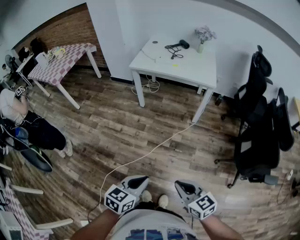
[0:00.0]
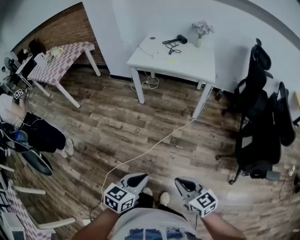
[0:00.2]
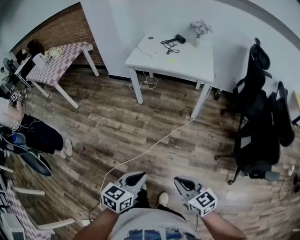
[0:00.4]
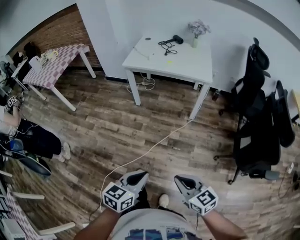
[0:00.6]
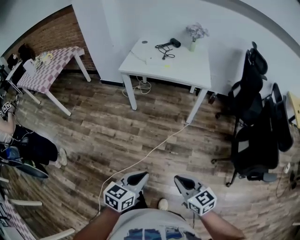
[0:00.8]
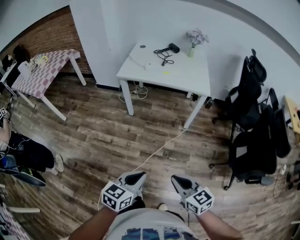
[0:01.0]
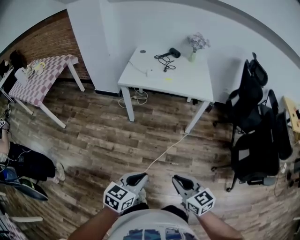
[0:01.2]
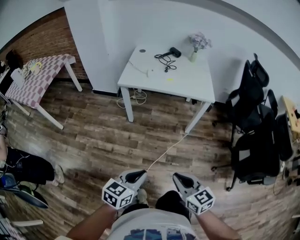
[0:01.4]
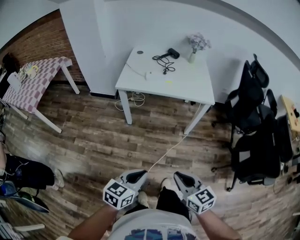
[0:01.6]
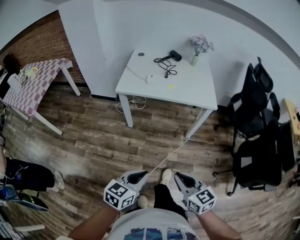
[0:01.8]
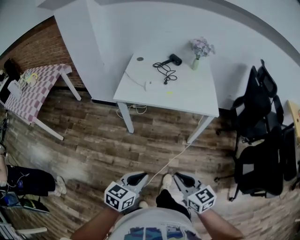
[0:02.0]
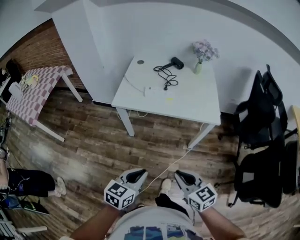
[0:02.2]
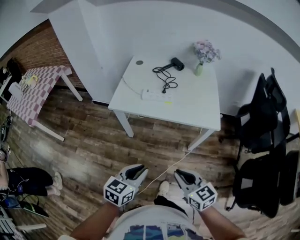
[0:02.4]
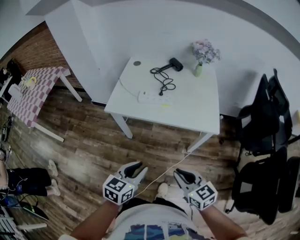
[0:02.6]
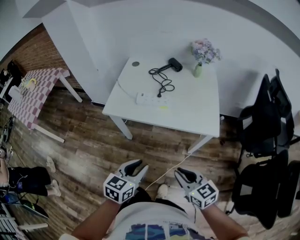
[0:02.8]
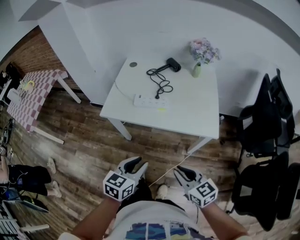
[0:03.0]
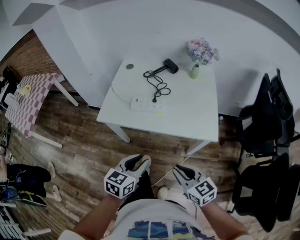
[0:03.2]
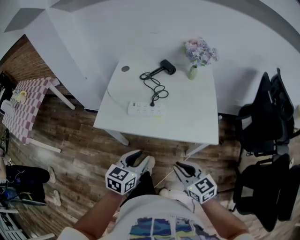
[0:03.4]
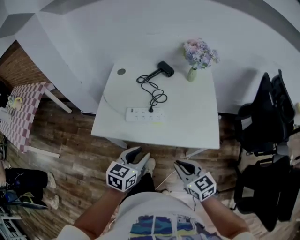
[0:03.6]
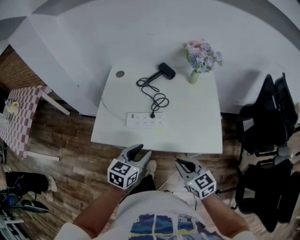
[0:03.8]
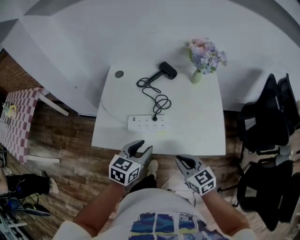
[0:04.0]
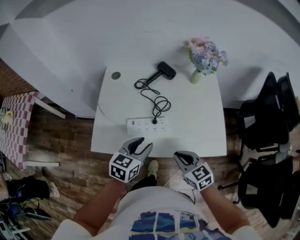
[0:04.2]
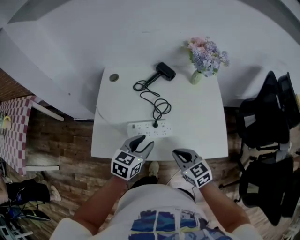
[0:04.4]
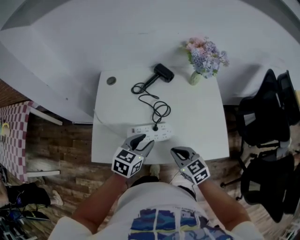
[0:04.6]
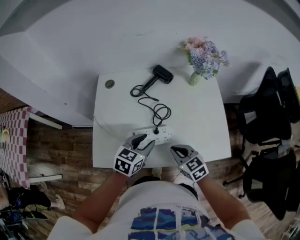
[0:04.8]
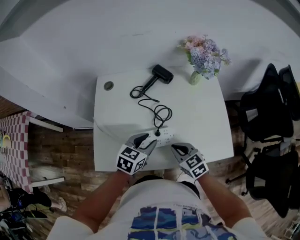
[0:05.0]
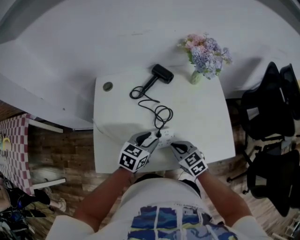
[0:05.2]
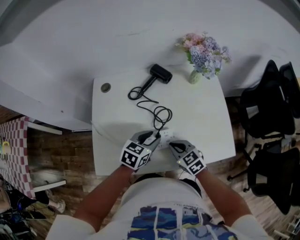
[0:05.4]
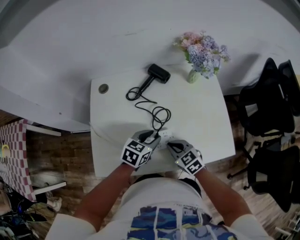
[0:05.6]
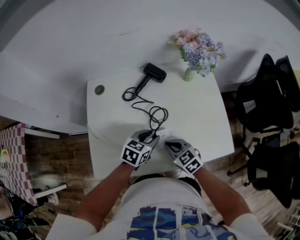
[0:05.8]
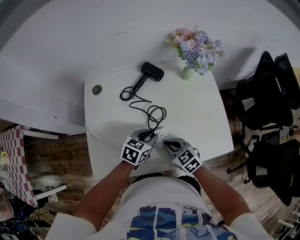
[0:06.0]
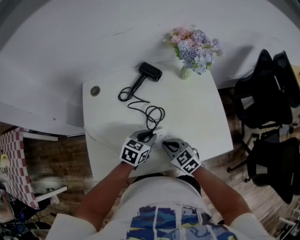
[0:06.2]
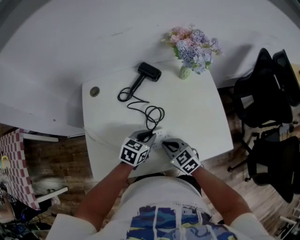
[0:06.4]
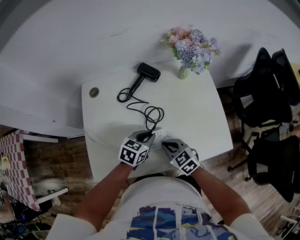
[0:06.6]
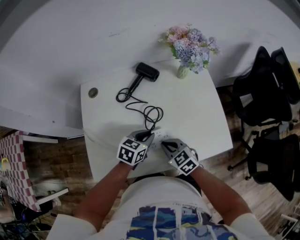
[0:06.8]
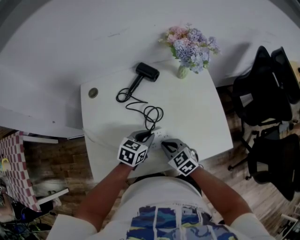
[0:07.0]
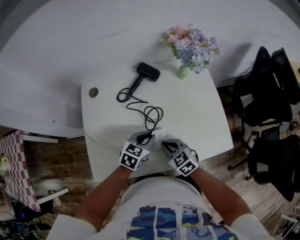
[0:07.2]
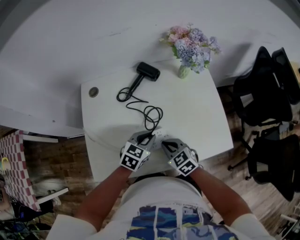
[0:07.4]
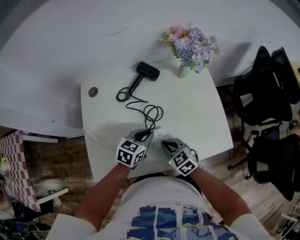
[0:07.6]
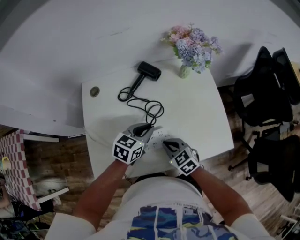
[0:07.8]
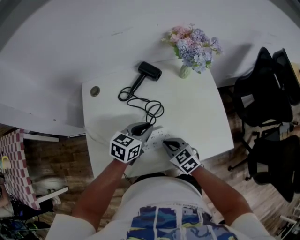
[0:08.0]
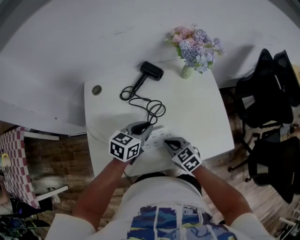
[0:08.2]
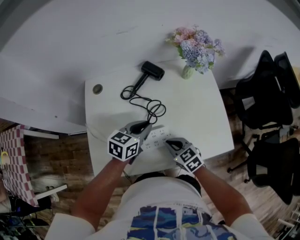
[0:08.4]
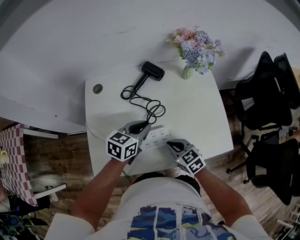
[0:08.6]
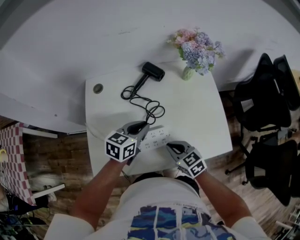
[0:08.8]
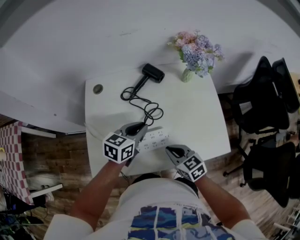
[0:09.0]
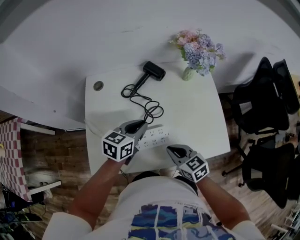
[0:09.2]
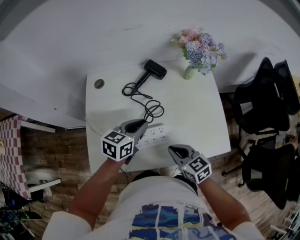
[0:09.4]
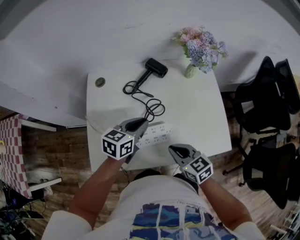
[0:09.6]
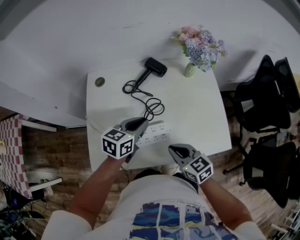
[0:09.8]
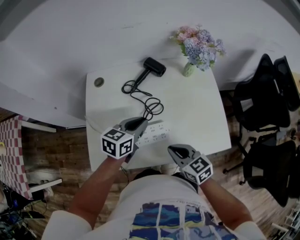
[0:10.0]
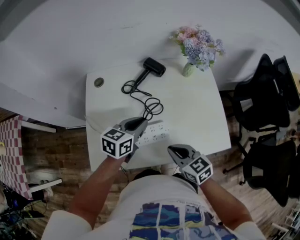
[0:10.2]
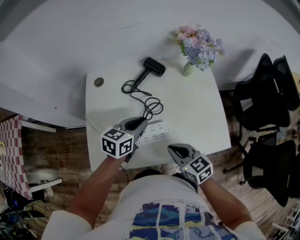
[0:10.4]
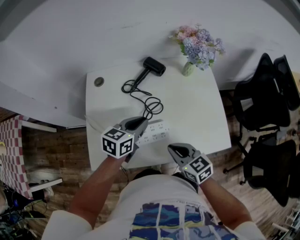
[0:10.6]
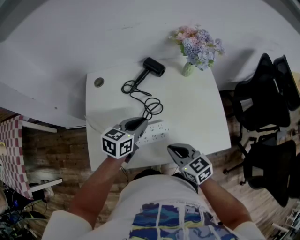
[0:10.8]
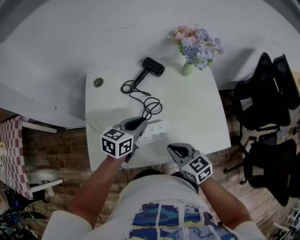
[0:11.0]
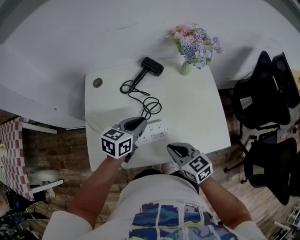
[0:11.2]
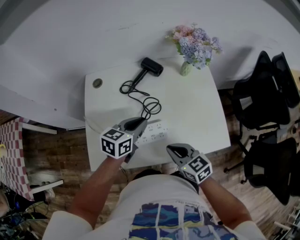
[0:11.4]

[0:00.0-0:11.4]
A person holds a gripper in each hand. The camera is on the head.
0:00.0 to 0:01.4: Both grippers move forward and to the left, some 25 cm.
0:01.4 to 0:02.8: The two grippers go about 35 cm forward. The left gripper opens up.
0:02.8 to 0:04.2: Both grippers travel together forward, approximately 30 cm.
0:04.2 to 0:05.6: The left gripper goes approximately 15 cm forward and downward, while the right gripper shifts some 15 cm forward, downward and to the left.
0:05.6 to 0:07.2: The left gripper closes its fingers.
0:07.2 to 0:08.6: The left gripper moves upward, some 5 cm.
0:08.6 to 0:10.0: The right gripper travels upward by roughly 5 cm.
0:10.0 to 0:11.4: Both grippers stay about where they are.

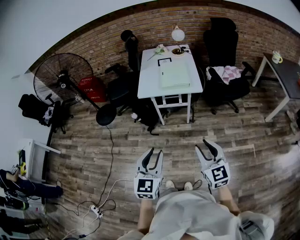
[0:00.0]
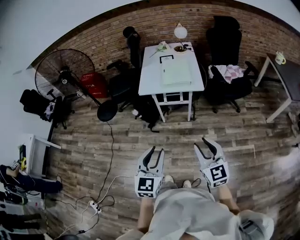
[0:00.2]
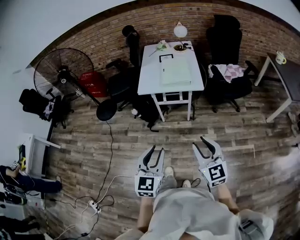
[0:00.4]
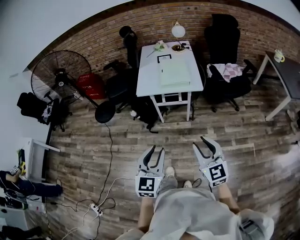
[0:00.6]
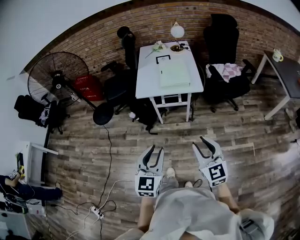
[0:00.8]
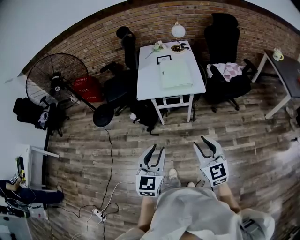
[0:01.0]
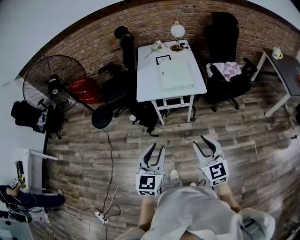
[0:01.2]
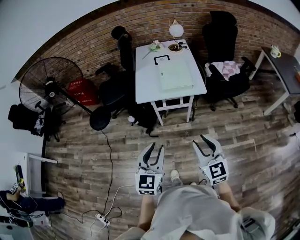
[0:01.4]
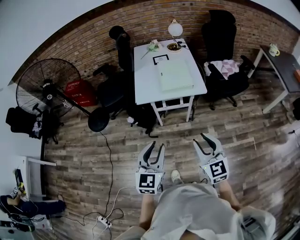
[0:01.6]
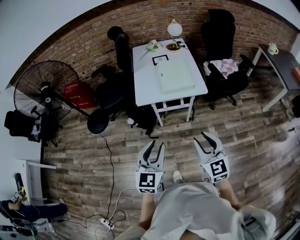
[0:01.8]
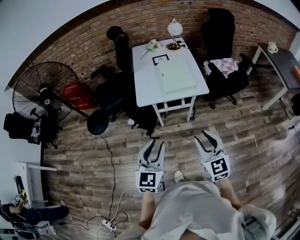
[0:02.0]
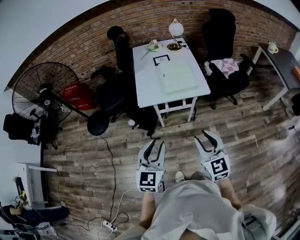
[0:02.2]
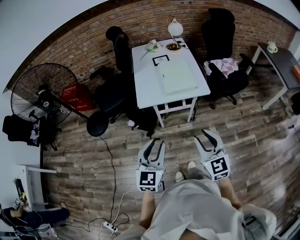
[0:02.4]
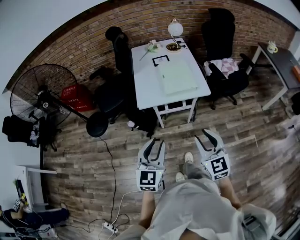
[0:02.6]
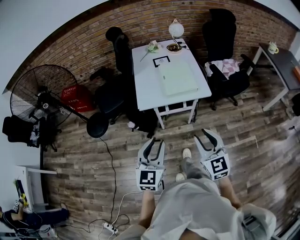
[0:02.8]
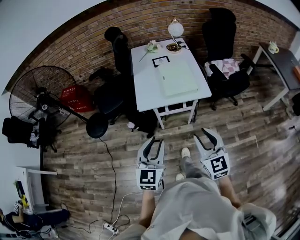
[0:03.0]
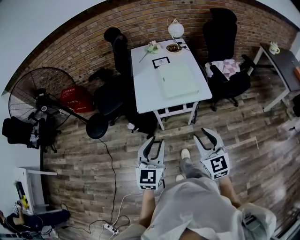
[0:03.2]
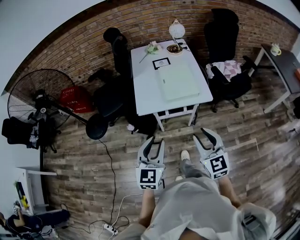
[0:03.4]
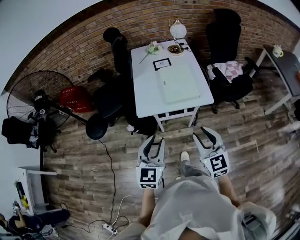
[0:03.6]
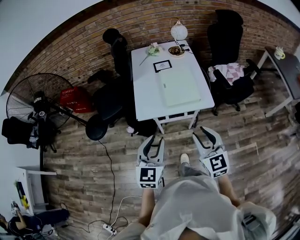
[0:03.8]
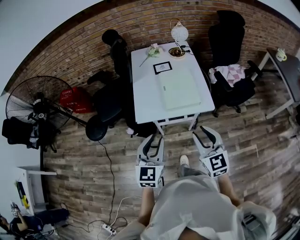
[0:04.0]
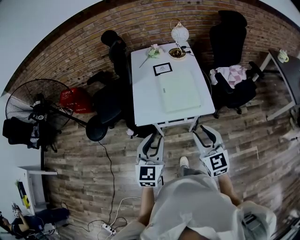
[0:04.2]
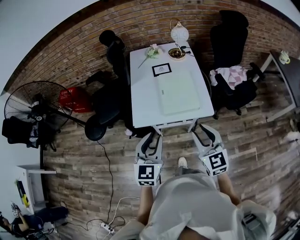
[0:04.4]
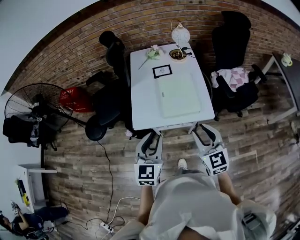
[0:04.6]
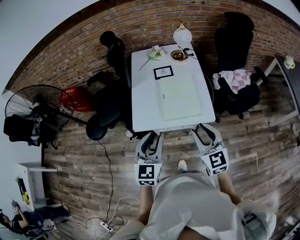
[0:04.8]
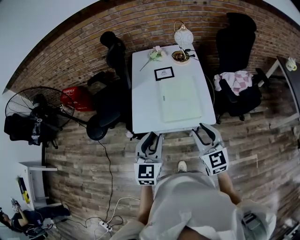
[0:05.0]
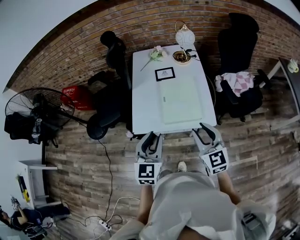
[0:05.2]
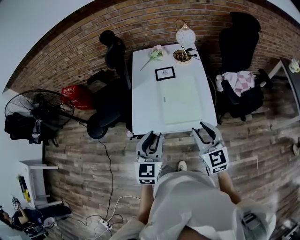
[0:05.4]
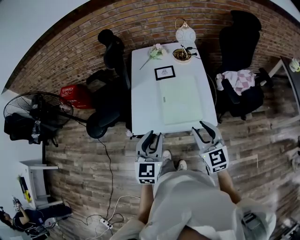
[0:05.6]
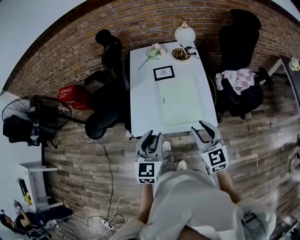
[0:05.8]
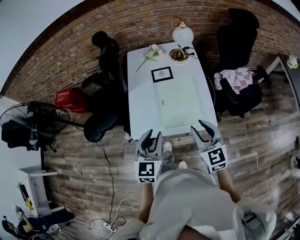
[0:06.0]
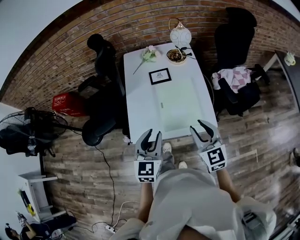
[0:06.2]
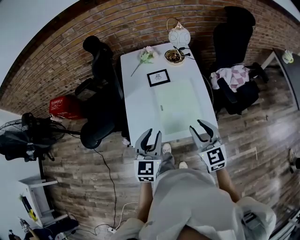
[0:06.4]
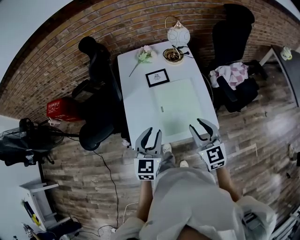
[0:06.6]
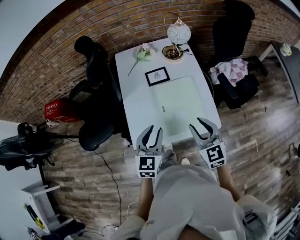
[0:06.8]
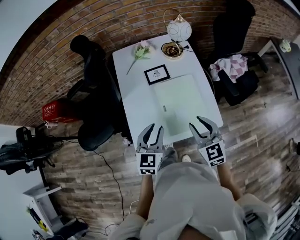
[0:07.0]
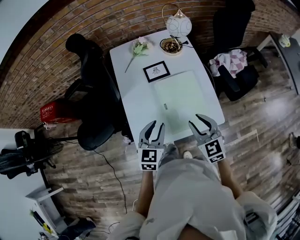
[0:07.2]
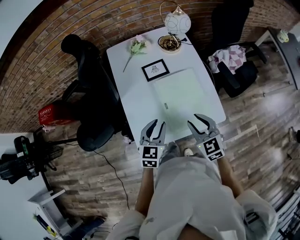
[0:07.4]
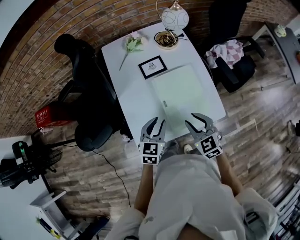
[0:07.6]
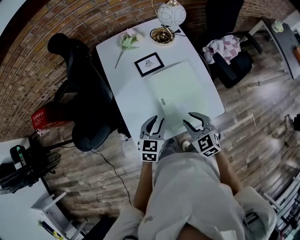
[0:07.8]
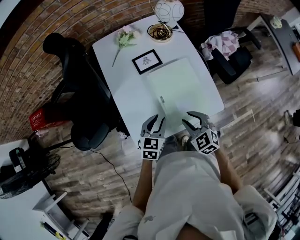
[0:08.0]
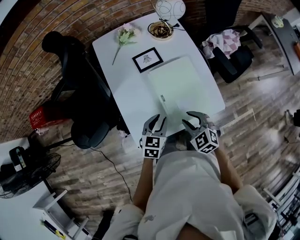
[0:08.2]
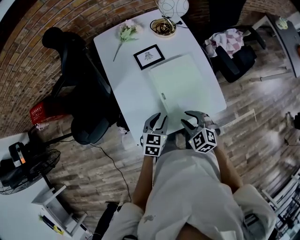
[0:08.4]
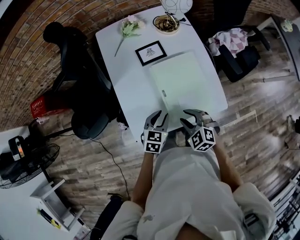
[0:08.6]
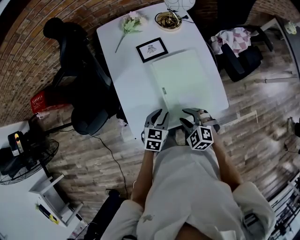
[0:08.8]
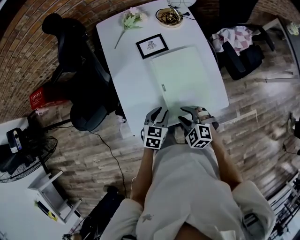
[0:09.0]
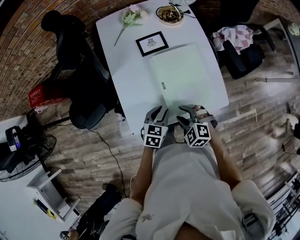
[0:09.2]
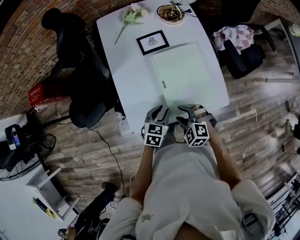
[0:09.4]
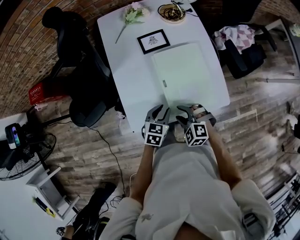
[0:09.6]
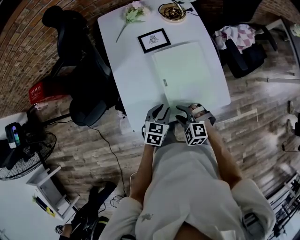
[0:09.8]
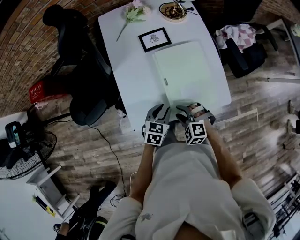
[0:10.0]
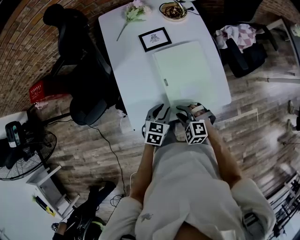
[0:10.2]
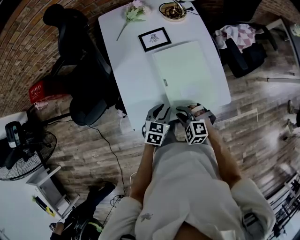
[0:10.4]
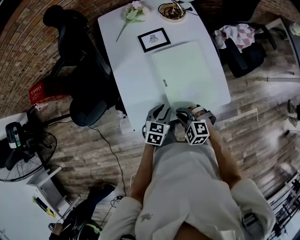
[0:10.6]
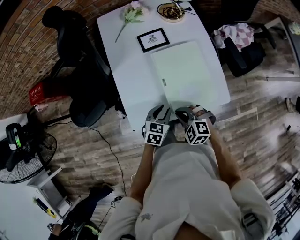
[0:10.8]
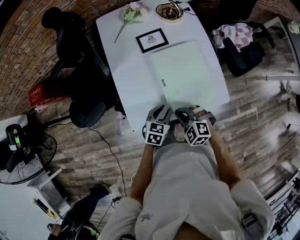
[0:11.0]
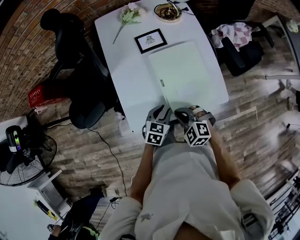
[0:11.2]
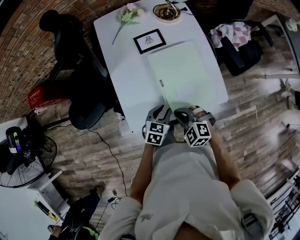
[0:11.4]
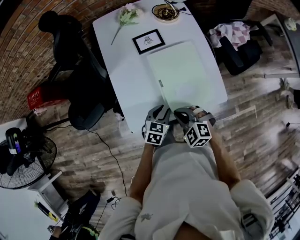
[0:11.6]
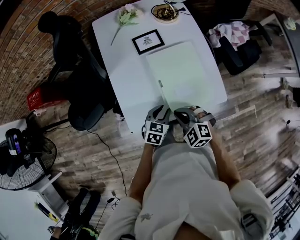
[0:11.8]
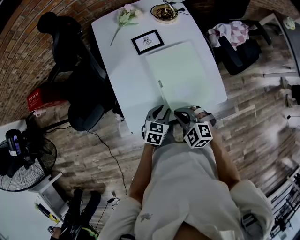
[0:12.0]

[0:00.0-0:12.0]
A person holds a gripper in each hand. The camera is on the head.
0:00.0 to 0:01.6: The left gripper goes some 15 cm forward. The right gripper goes roughly 15 cm forward and to the left.
0:01.6 to 0:03.0: Both grippers move forward, roughly 10 cm.
0:03.0 to 0:04.4: The grippers both shift forward by approximately 20 cm.
0:04.4 to 0:06.0: The grippers both shift forward by roughly 15 cm.
0:06.0 to 0:07.6: The left gripper moves downward and forward, roughly 20 cm, and turns by about 30 degrees, while the right gripper moves downward, forward and to the left, some 20 cm, and rotates approximately 20 degrees.
0:07.6 to 0:09.0: The grippers both shift downward by some 10 cm. The right gripper swivels approximately 40 degrees.
0:09.0 to 0:10.4: The grippers move only a little.
0:10.4 to 0:12.0: The right gripper is displaced upward by about 5 cm, and closes up.

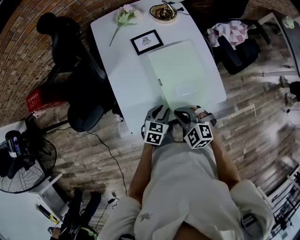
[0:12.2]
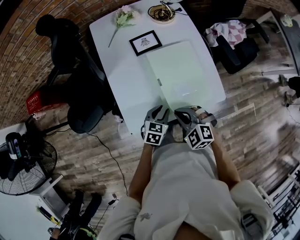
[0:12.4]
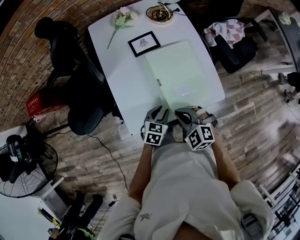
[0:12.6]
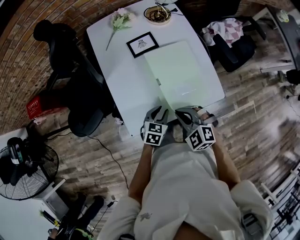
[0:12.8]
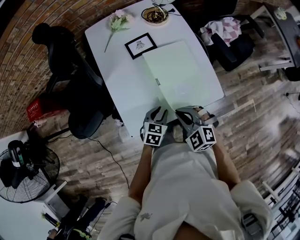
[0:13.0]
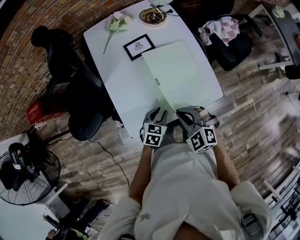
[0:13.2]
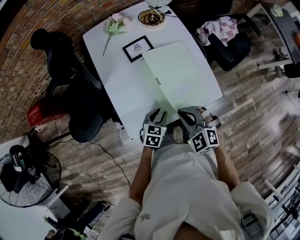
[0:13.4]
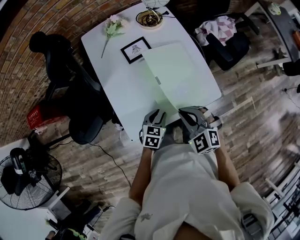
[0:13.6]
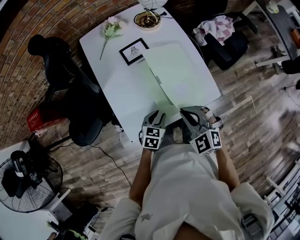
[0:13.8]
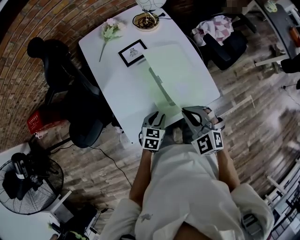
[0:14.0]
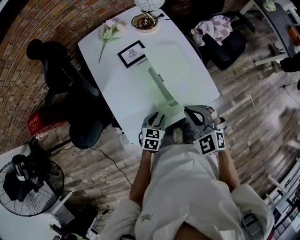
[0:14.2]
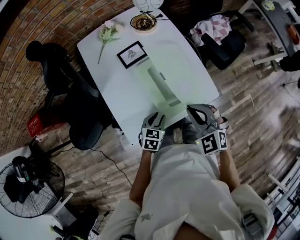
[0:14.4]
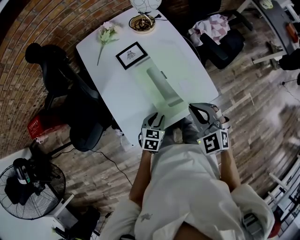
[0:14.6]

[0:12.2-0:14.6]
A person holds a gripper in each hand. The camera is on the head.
0:12.2 to 0:13.4: The right gripper is displaced upward by some 5 cm.
0:13.4 to 0:14.6: The right gripper moves upward and to the right, approximately 10 cm.
